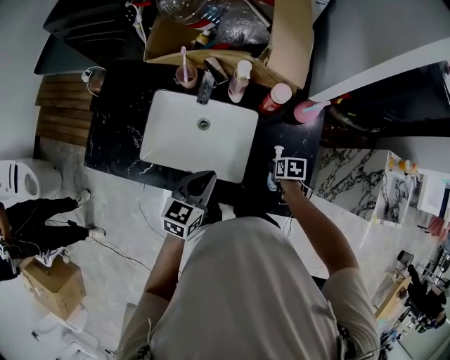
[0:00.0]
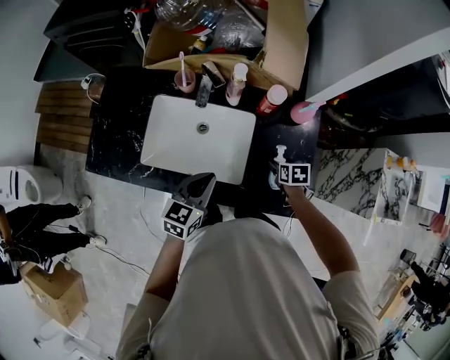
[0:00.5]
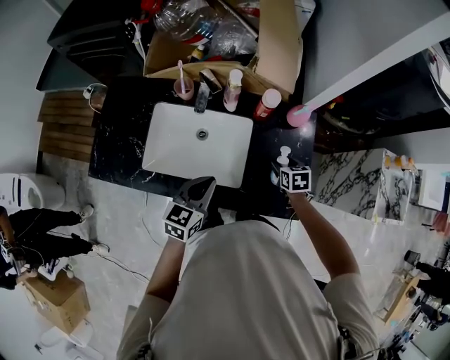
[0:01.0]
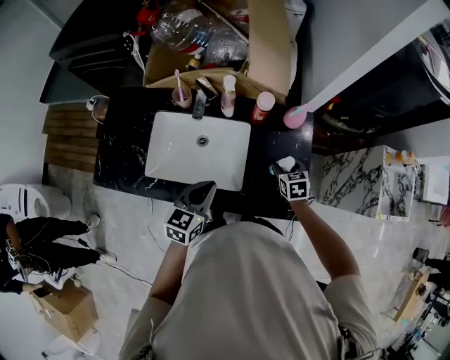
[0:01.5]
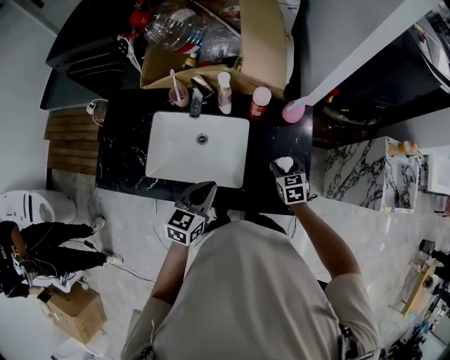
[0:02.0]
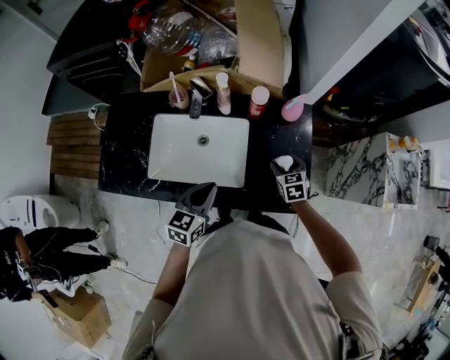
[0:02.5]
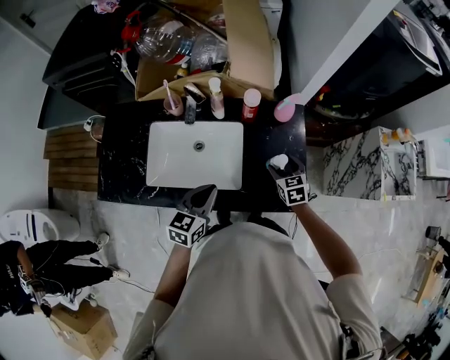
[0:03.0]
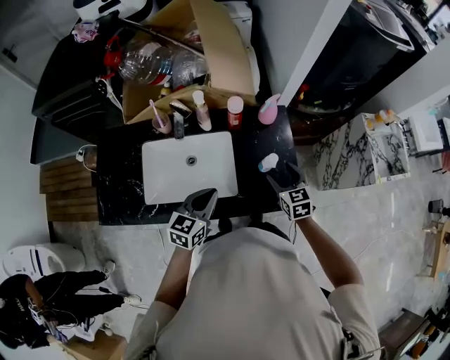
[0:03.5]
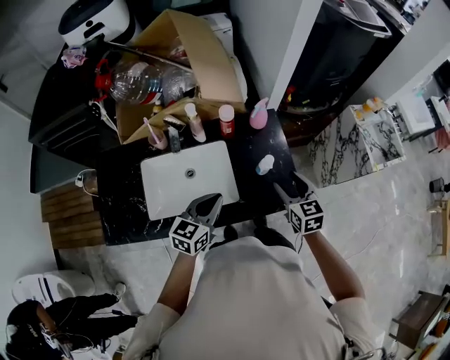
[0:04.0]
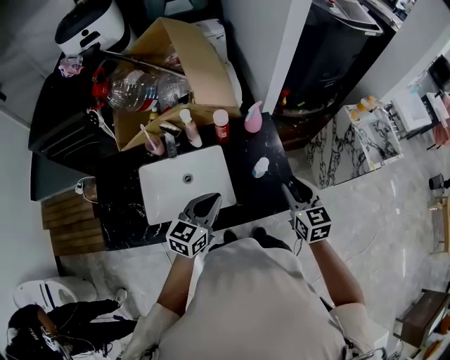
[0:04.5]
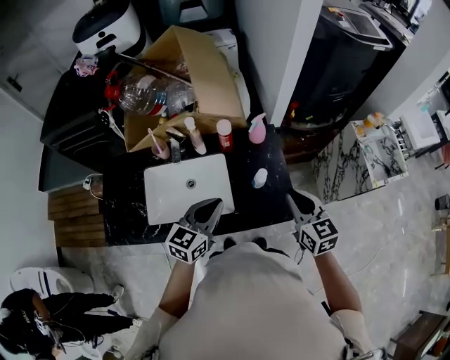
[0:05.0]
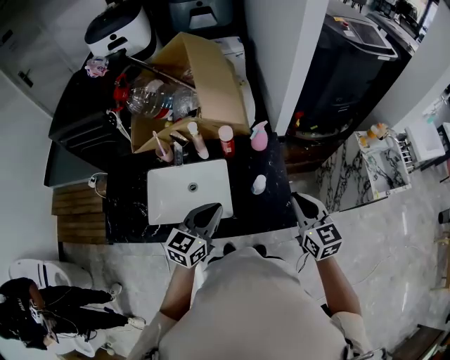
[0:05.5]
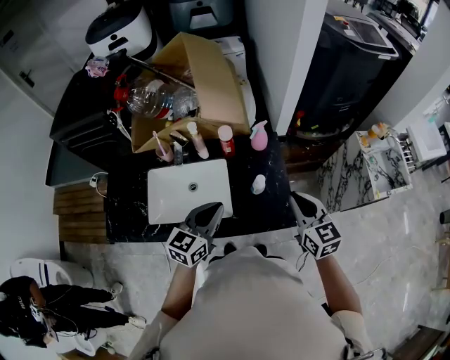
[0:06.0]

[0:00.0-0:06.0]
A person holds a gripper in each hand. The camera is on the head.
0:00.0 to 0:02.0: The right gripper shifts some 10 cm upward, and rotates roughly 40 degrees.
0:02.0 to 0:04.0: The right gripper travels upward and backward by roughly 20 cm, and turns by approximately 30 degrees. The left gripper changes place by some 5 cm, and turns by approximately 20 degrees.
0:04.0 to 0:06.0: Both grippers travel together upward and to the right, about 10 cm. The right gripper closes up.

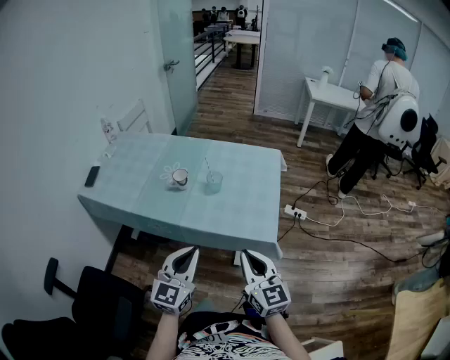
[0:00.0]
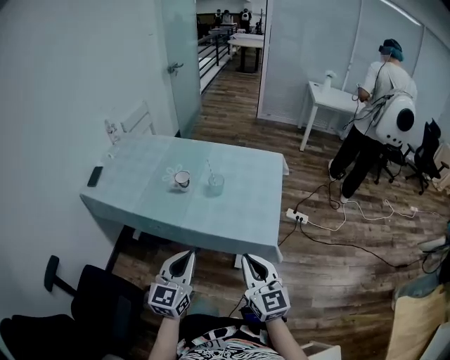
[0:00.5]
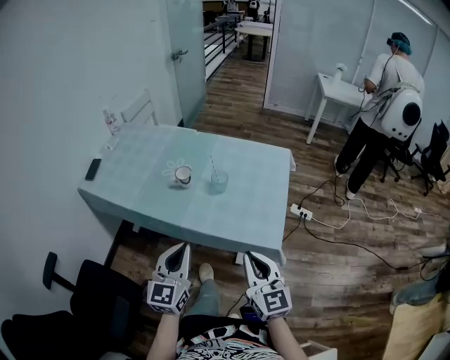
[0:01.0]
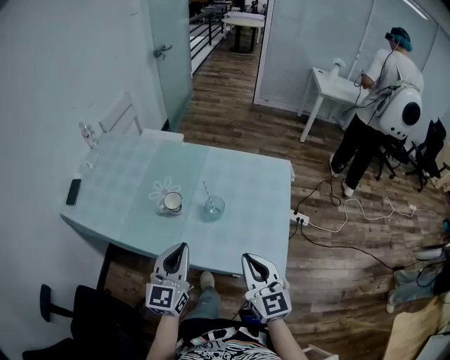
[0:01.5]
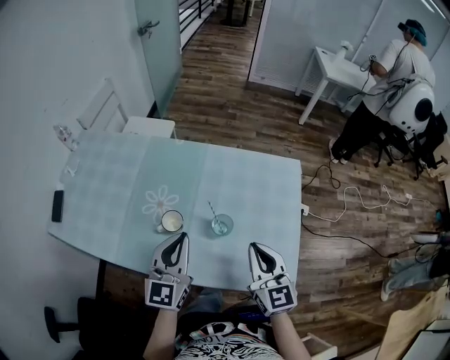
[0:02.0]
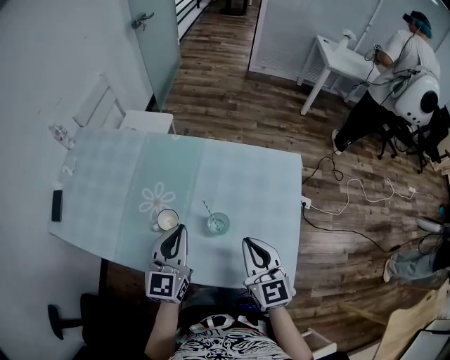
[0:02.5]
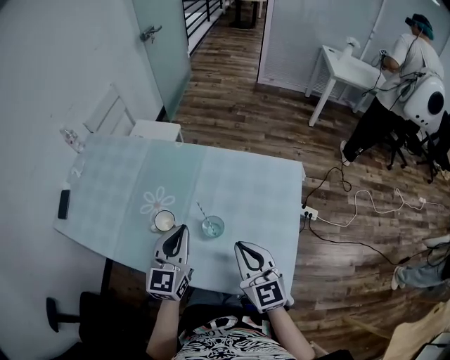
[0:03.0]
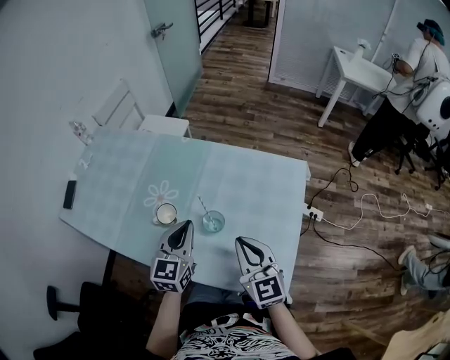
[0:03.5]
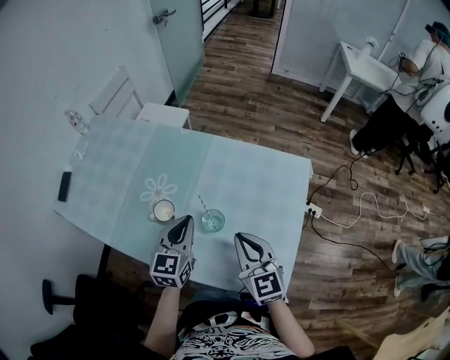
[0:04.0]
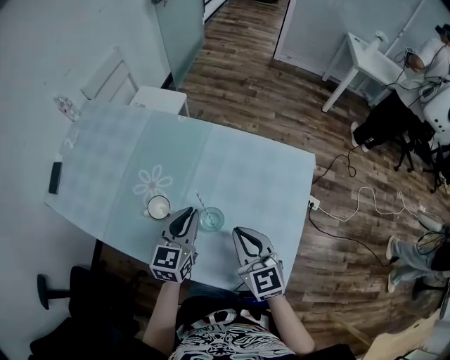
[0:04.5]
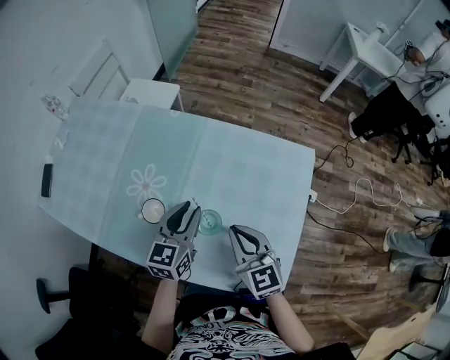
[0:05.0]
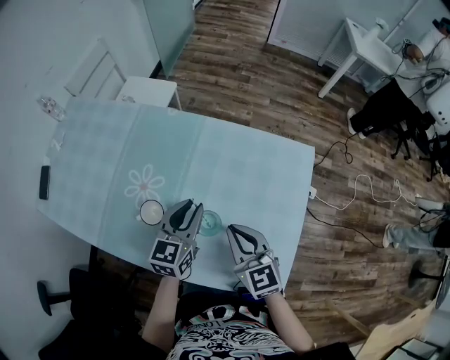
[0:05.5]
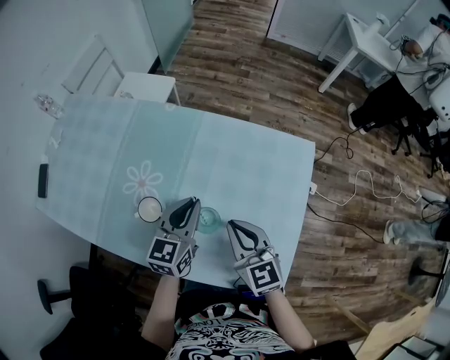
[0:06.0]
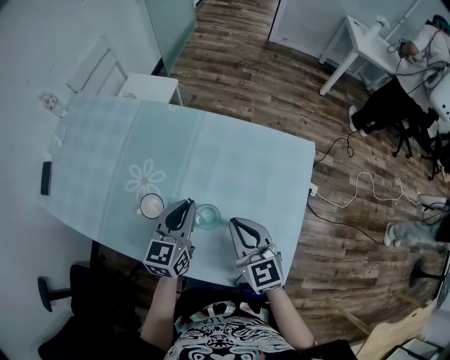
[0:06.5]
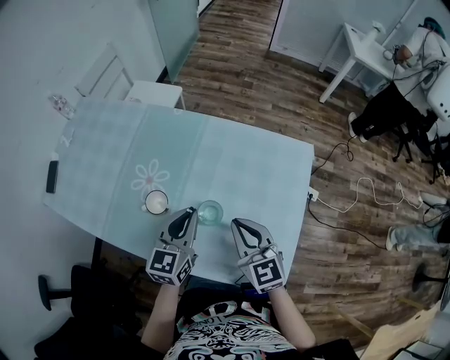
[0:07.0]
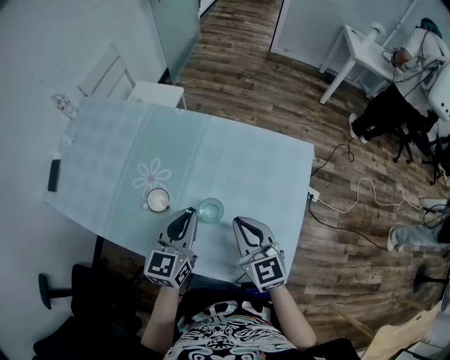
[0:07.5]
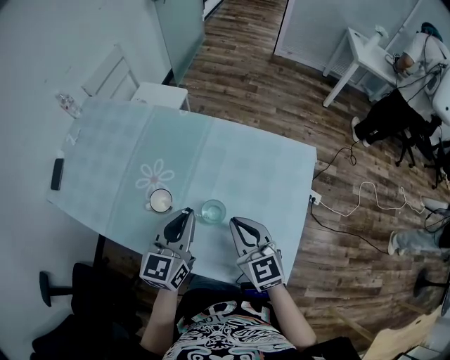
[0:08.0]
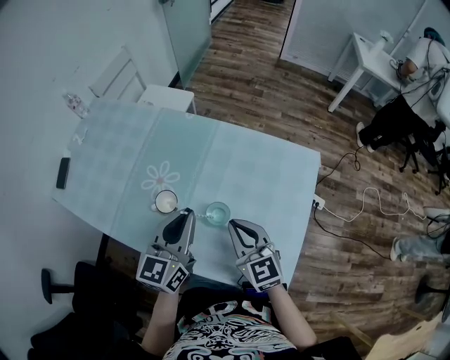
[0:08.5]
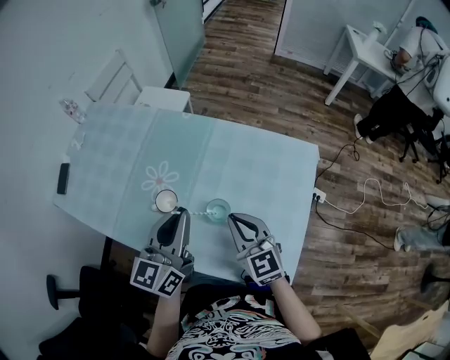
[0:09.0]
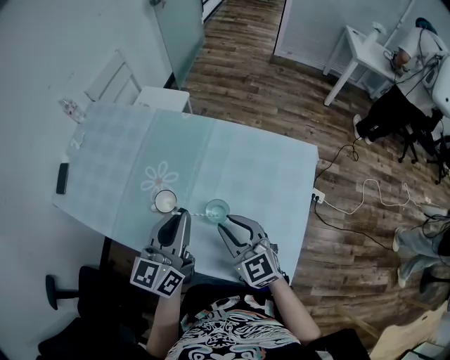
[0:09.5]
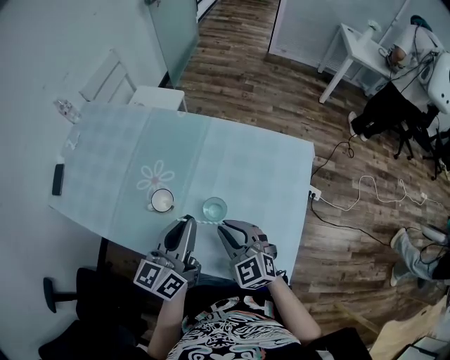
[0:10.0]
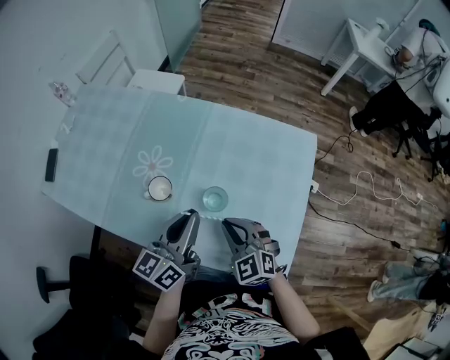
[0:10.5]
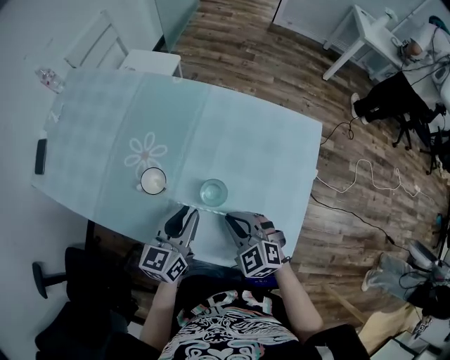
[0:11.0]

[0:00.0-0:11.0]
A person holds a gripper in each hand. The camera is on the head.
0:00.0 to 0:02.0: Both grippers move forward, about 30 cm.
0:02.0 to 0:03.5: The left gripper goes roughly 5 cm downward.
0:03.5 to 0:05.5: The left gripper shifts approximately 10 cm forward and downward, and opens its fingers; the right gripper shifts roughly 10 cm downward and forward.
0:05.5 to 0:07.5: The left gripper travels backward by approximately 5 cm.
0:07.5 to 0:09.0: The left gripper moves upward, roughly 10 cm.
0:09.0 to 0:11.0: The left gripper goes approximately 15 cm downward. Meanwhile the right gripper goes approximately 15 cm downward and backward, and turns by approximately 30 degrees.

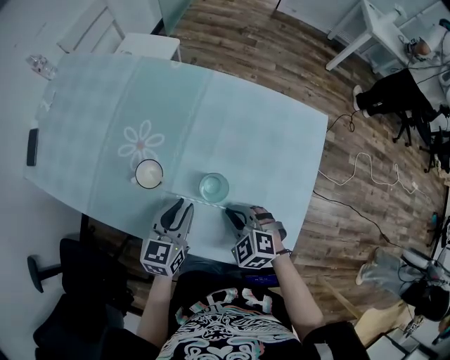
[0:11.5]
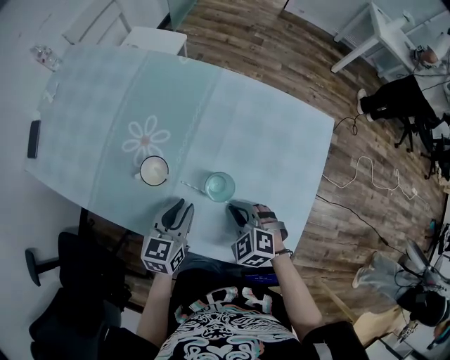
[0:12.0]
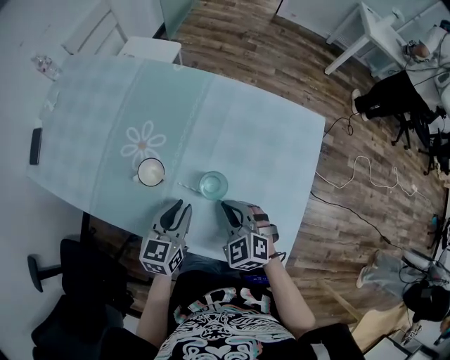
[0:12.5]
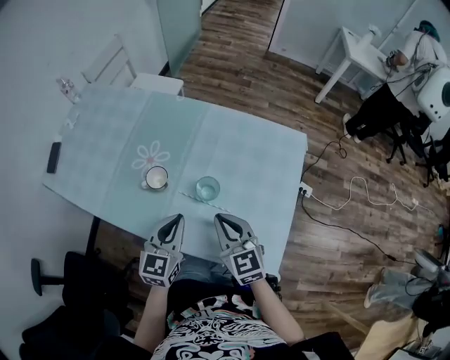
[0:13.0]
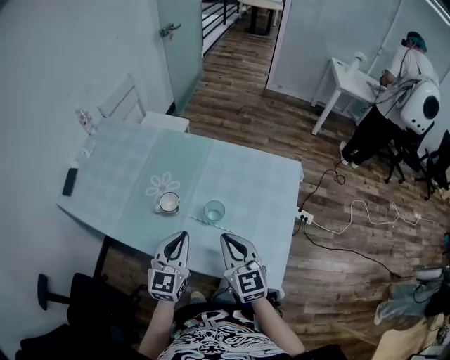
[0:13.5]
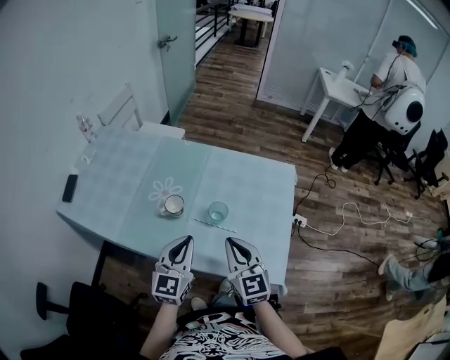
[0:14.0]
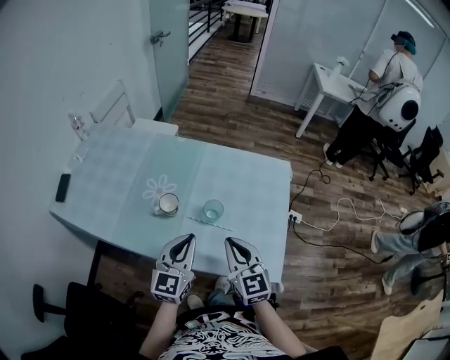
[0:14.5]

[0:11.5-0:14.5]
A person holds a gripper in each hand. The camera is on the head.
0:11.5 to 0:13.0: The right gripper heads upward, covering approximately 15 cm, and tips its fingers upward by some 30 degrees, while the left gripper shifts roughly 10 cm upward, and closes its fingers.
0:13.0 to 0:14.5: The two grippers go about 5 cm upward.

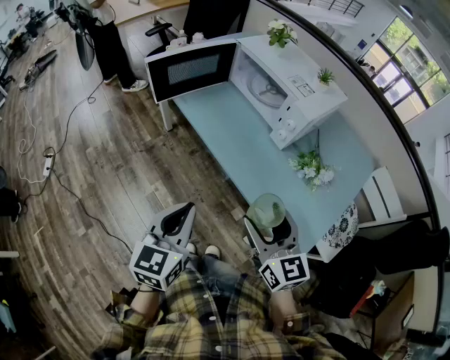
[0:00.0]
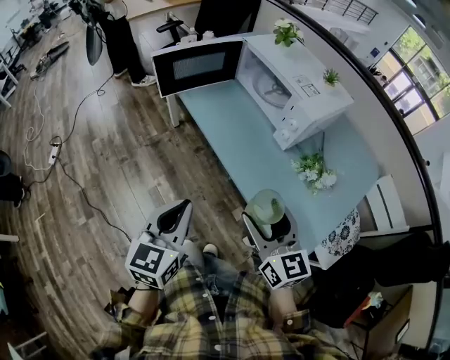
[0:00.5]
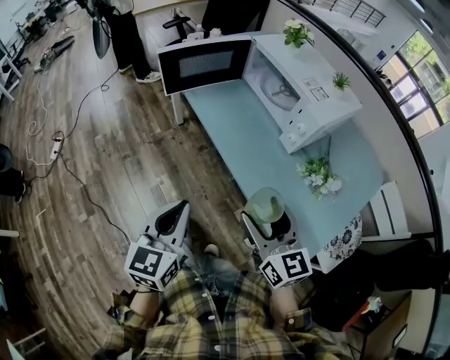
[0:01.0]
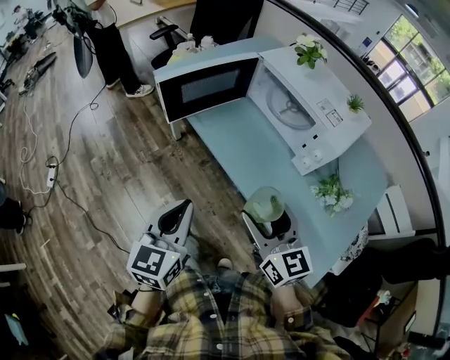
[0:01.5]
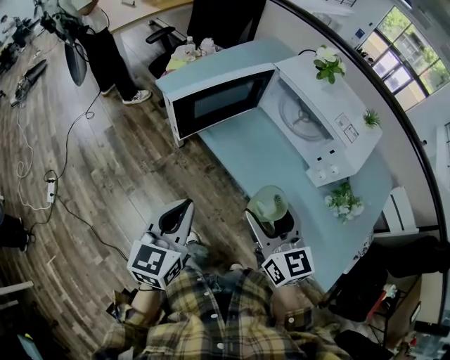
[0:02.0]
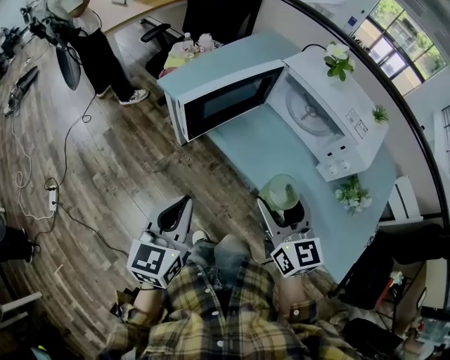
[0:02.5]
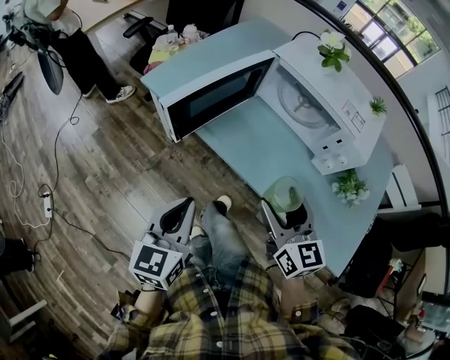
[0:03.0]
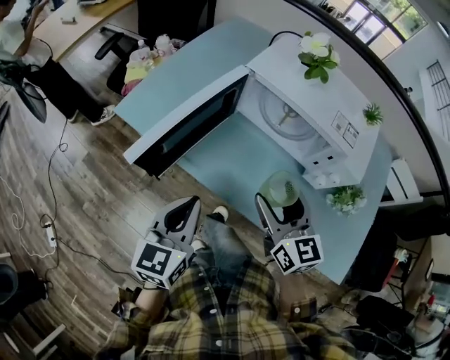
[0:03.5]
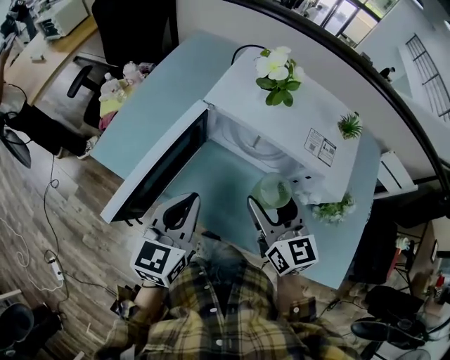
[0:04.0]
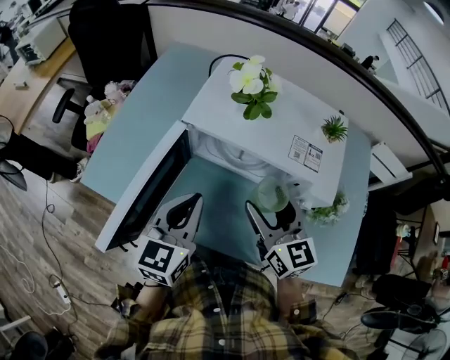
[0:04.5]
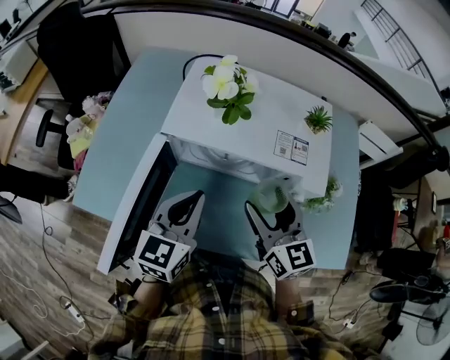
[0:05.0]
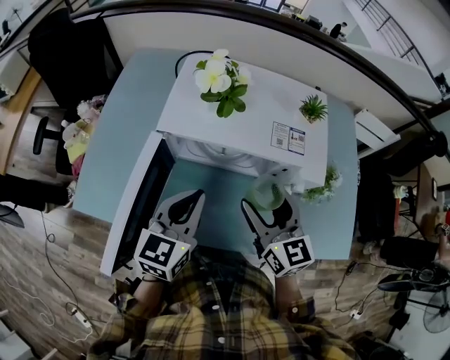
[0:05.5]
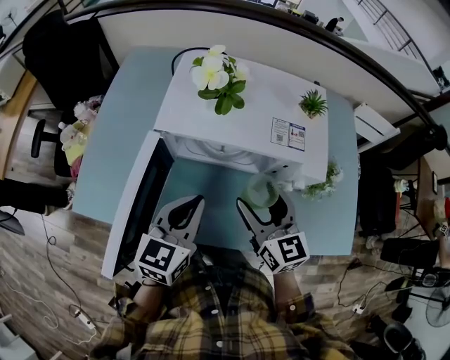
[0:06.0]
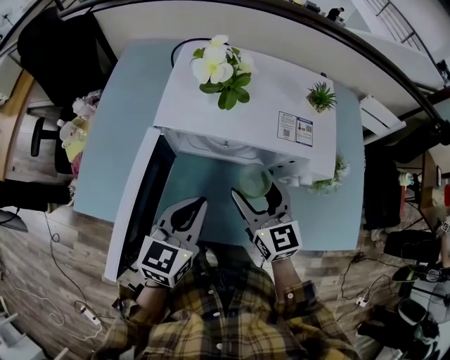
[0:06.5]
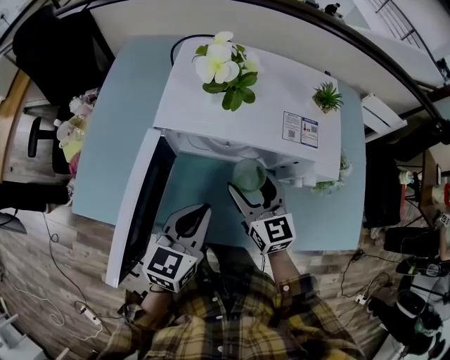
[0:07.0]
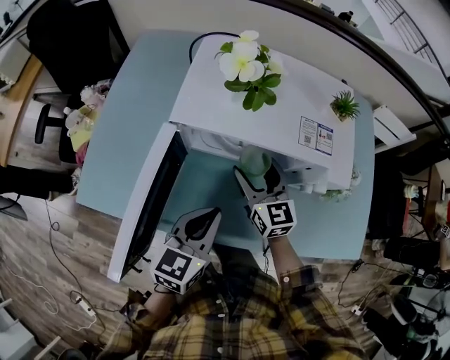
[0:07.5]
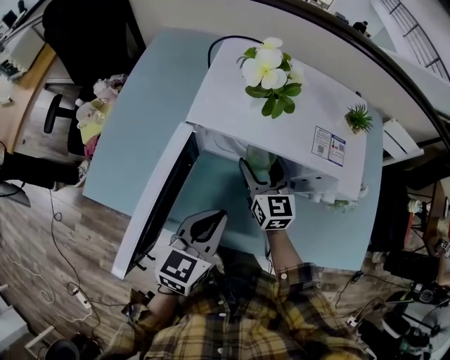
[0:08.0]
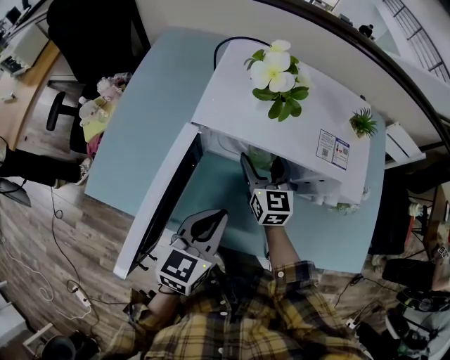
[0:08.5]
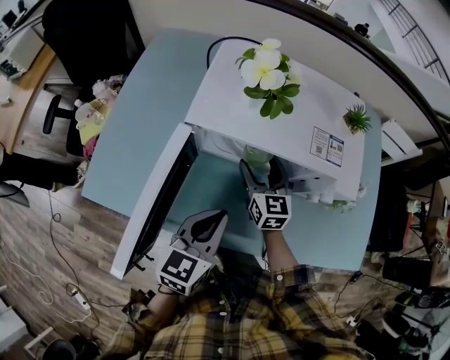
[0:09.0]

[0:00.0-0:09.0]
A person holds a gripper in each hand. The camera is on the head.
0:00.0 to 0:02.0: Both grippers move forward and to the left, approximately 25 cm.
0:02.0 to 0:04.5: The right gripper moves roughly 25 cm, and changes its angle by approximately 30 degrees, while the left gripper shifts by approximately 30 cm, and rotates about 30 degrees.
0:04.5 to 0:07.0: The left gripper moves downward, about 5 cm, while the right gripper goes approximately 10 cm downward.
0:07.0 to 0:09.0: The right gripper travels forward and downward by approximately 10 cm.
